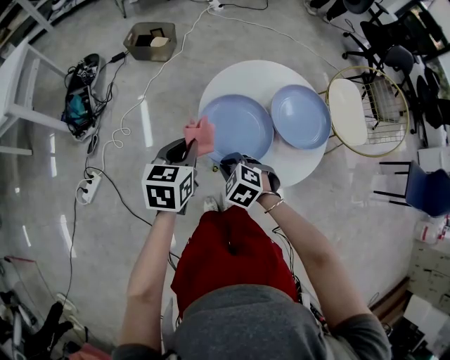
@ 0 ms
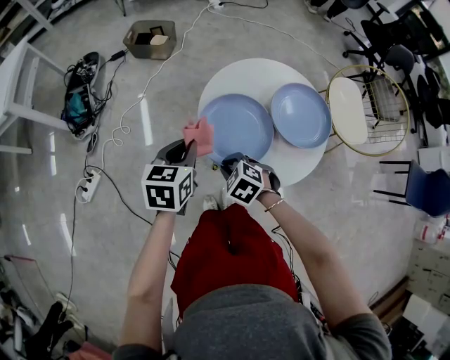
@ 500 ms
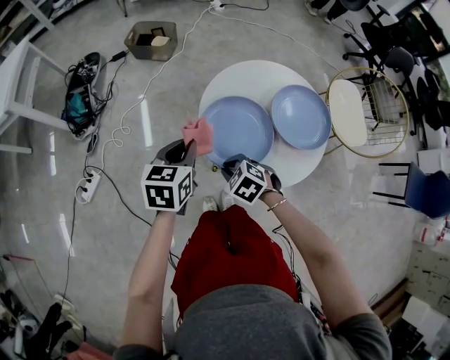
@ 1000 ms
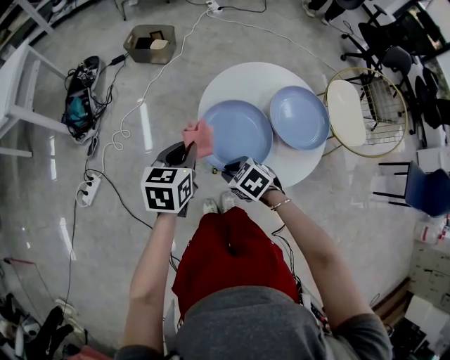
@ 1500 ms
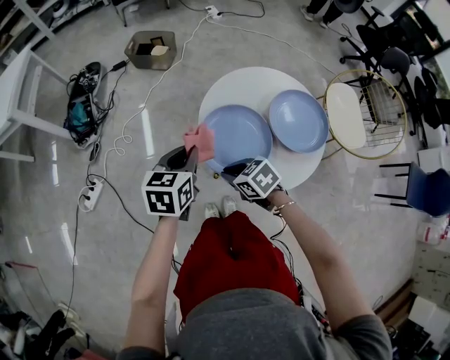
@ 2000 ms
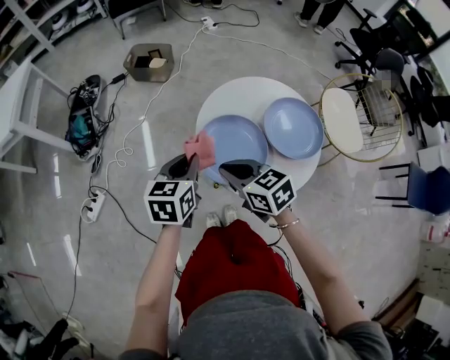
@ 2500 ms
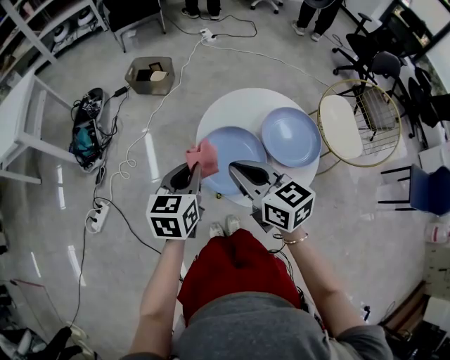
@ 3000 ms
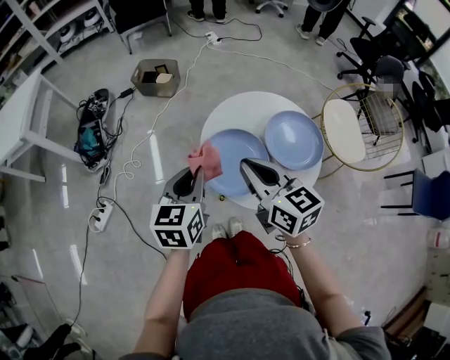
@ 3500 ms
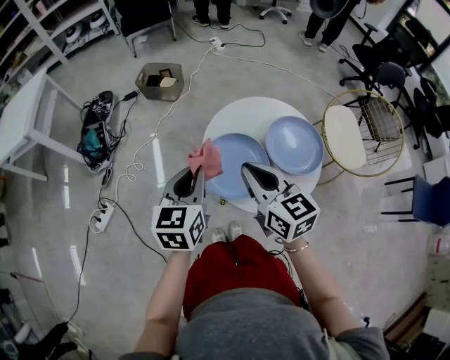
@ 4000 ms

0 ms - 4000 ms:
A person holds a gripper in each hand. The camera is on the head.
0 ms - 2000 ms: The right gripper turns by some 30 degrees.
2000 ms - 4000 ms: The right gripper shifts approximately 25 cm upward, and angles its fingers upward, by about 30 degrees. The left gripper heads upward, covering about 10 cm.

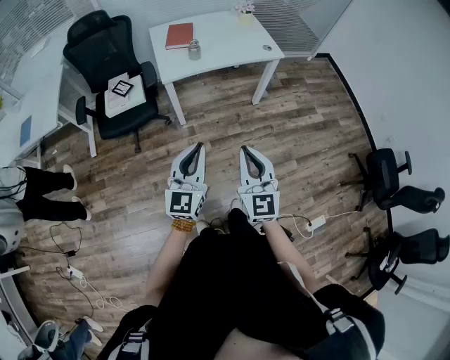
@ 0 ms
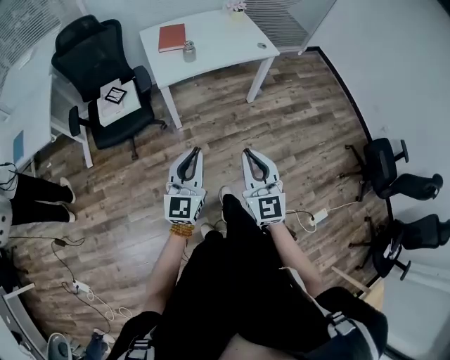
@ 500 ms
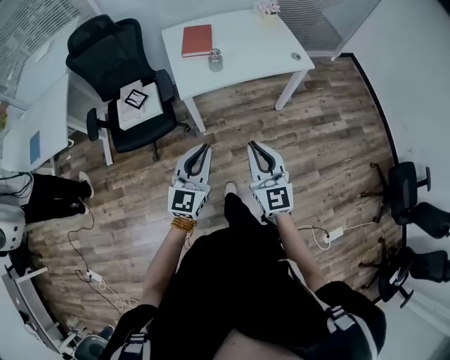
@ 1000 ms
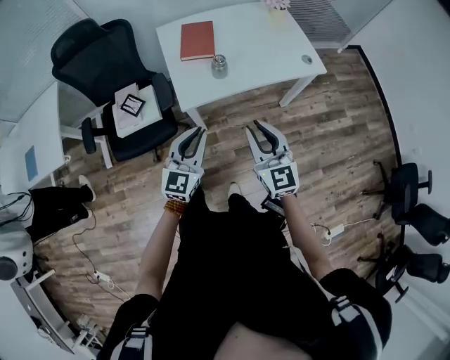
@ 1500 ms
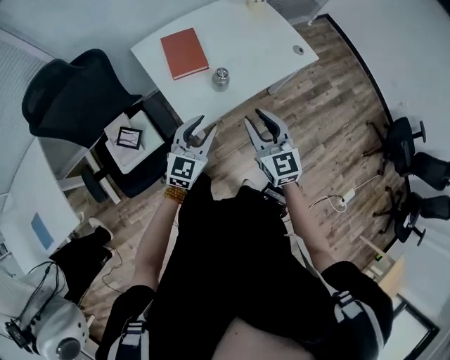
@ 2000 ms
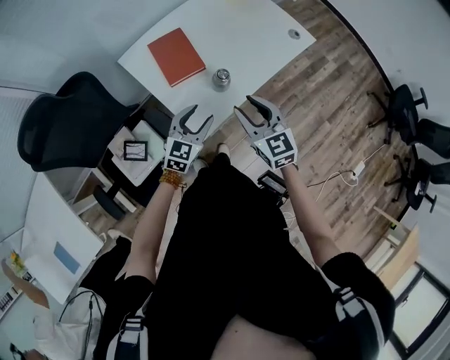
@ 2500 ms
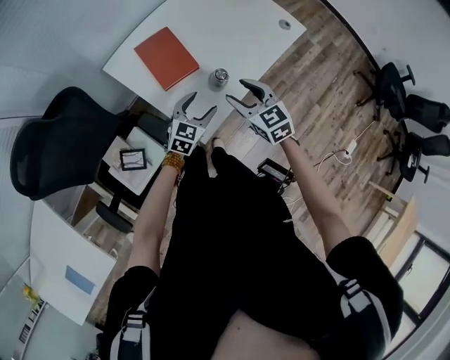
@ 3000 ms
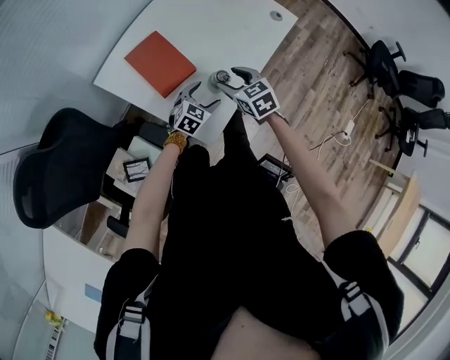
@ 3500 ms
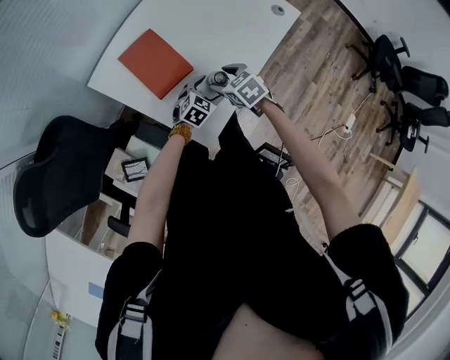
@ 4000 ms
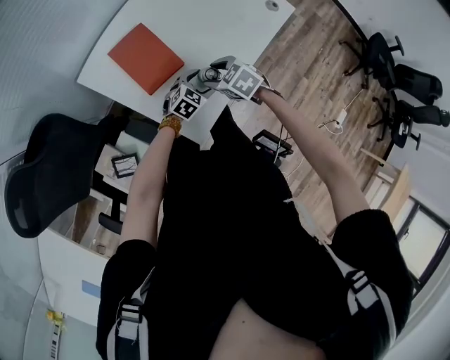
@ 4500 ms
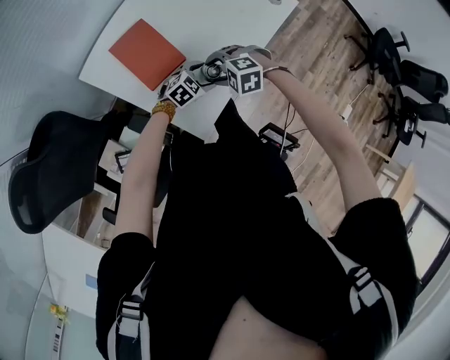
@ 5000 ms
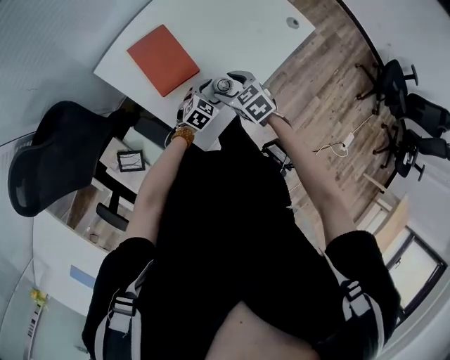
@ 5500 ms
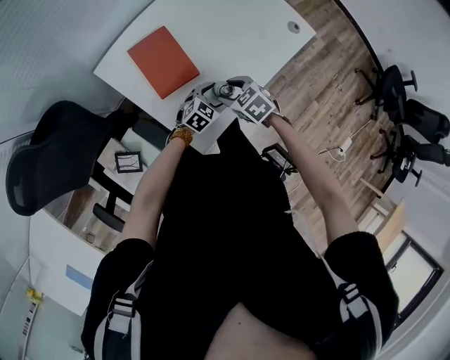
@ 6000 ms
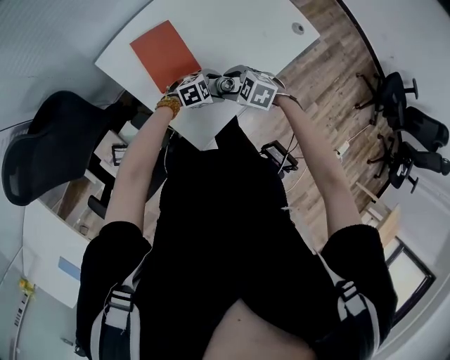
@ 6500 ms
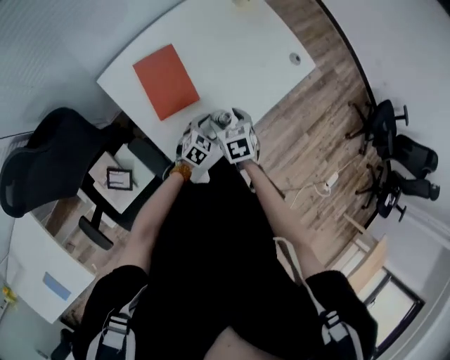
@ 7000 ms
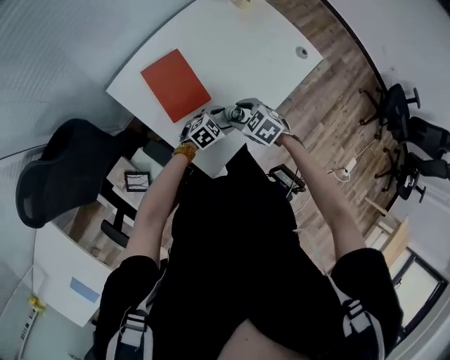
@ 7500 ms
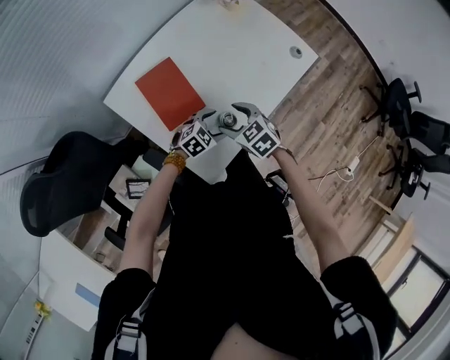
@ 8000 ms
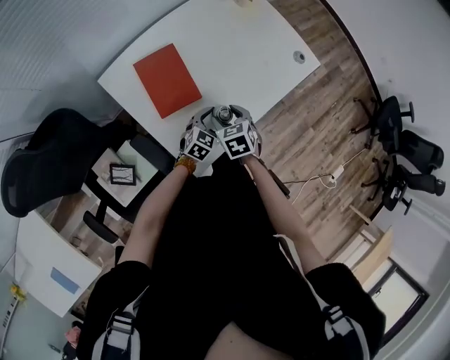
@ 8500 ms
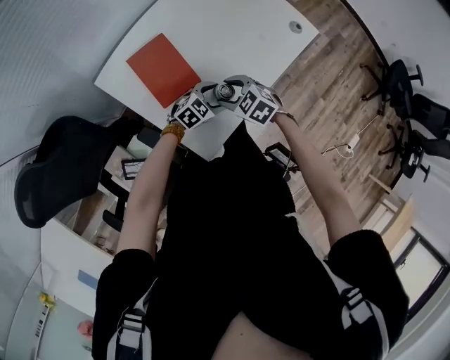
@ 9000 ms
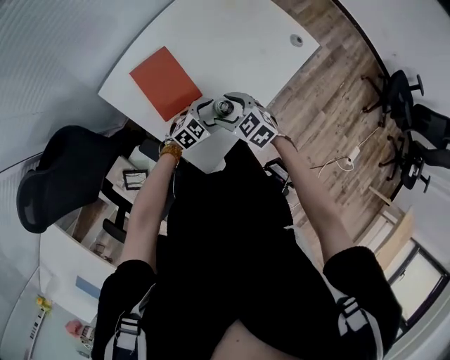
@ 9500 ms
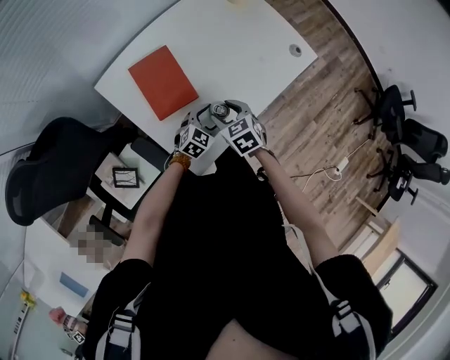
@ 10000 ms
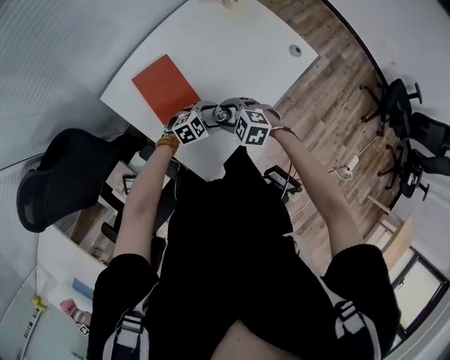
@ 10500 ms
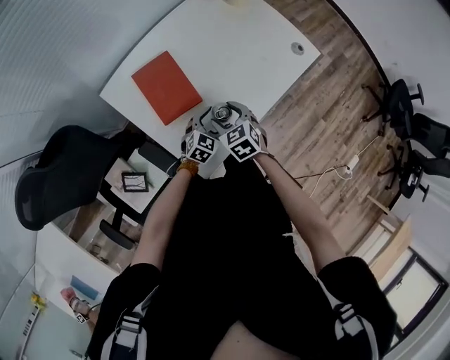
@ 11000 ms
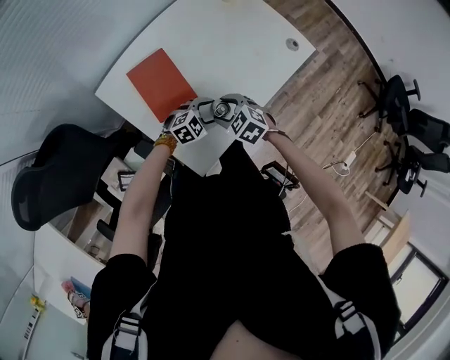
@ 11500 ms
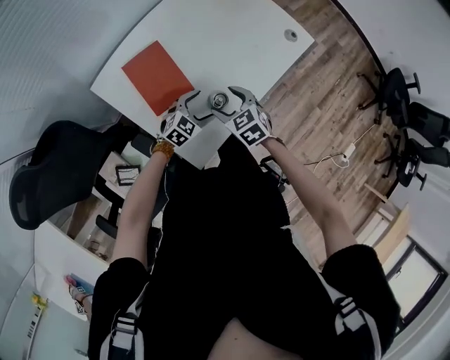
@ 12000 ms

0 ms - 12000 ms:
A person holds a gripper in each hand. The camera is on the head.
0 ms - 2000 ms: The two grippers travel together, forward and to the left, some 50 cm. The left gripper rotates about 30 degrees. Meanwhile the right gripper opens.
2000 ms - 4000 ms: The right gripper moves downward, forward and to the left, some 30 cm, angles its fingers downward, by about 40 degrees, and opens; the left gripper moves downward and forward, roughly 30 cm, swivels some 40 degrees, and opens.
8000 ms - 10000 ms: The left gripper swivels roughly 20 degrees.

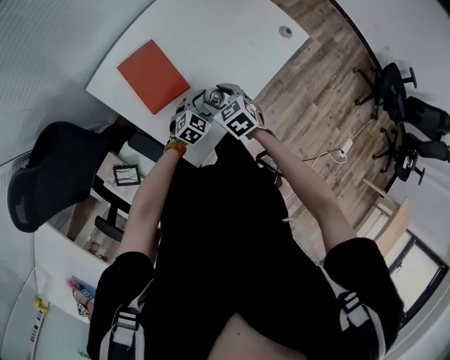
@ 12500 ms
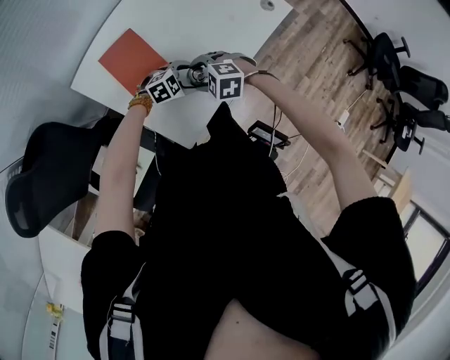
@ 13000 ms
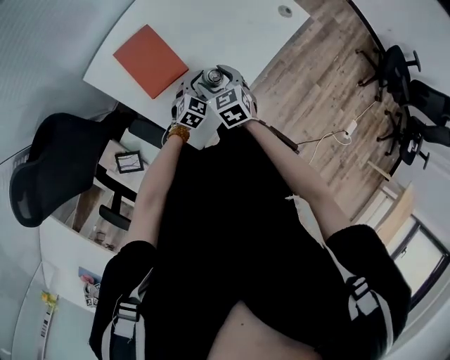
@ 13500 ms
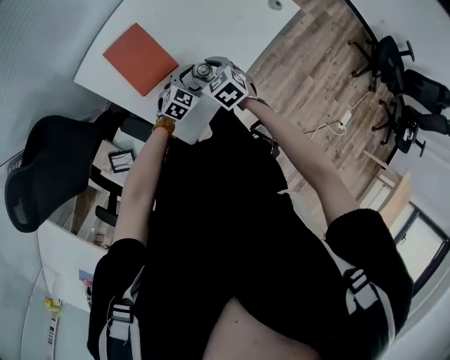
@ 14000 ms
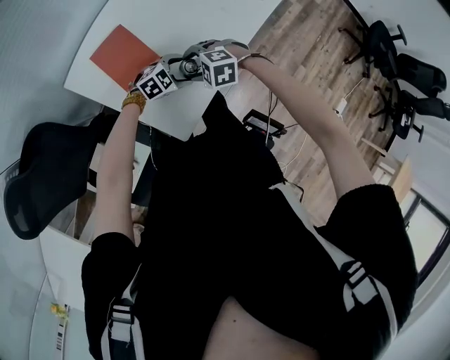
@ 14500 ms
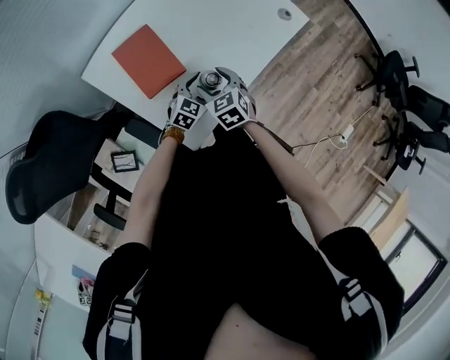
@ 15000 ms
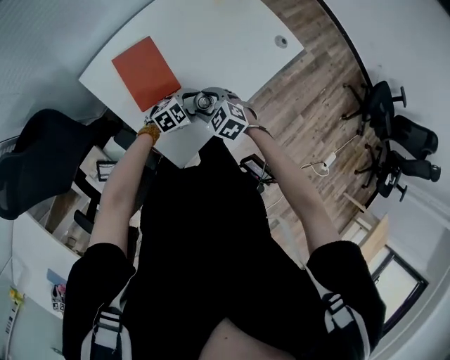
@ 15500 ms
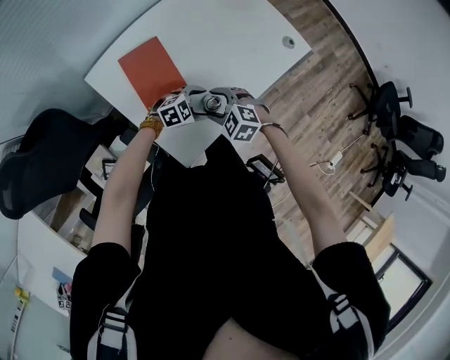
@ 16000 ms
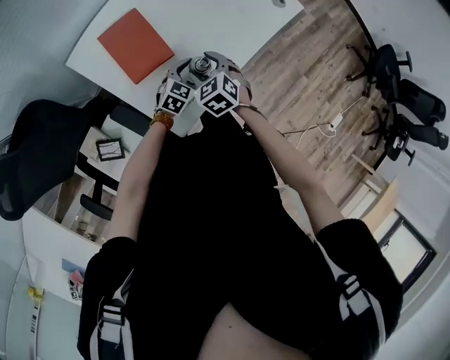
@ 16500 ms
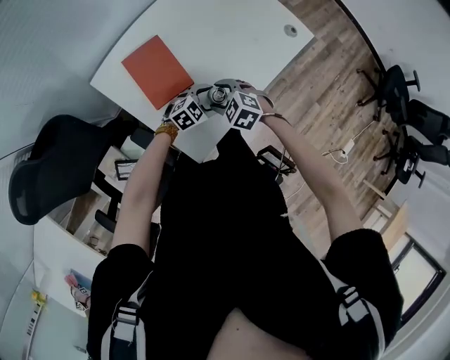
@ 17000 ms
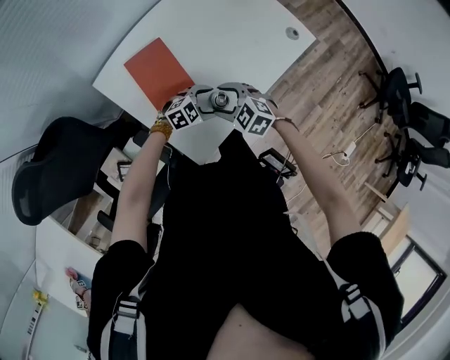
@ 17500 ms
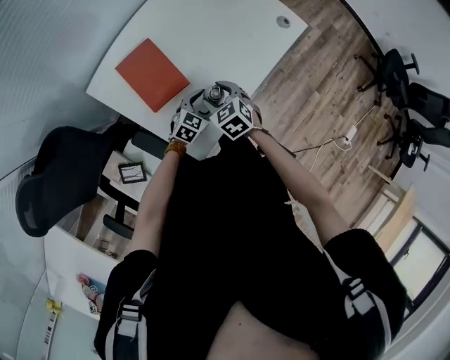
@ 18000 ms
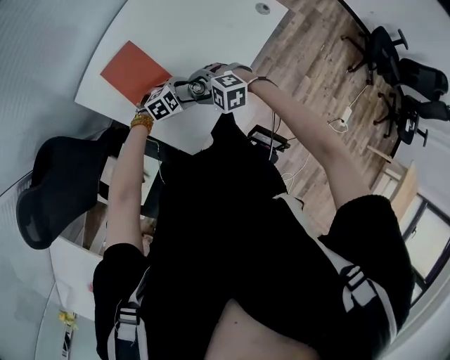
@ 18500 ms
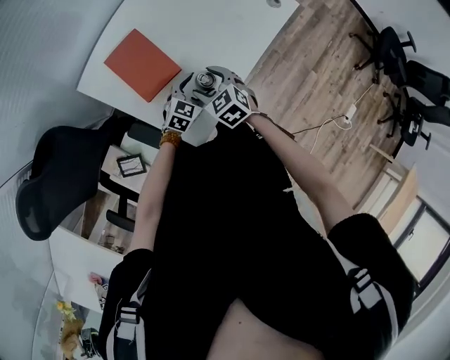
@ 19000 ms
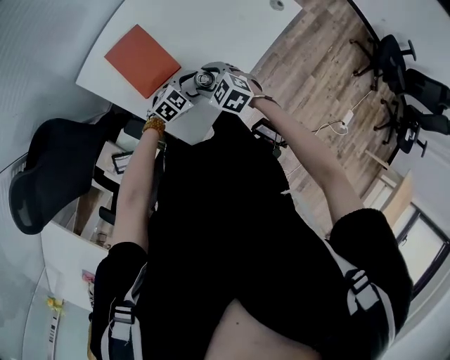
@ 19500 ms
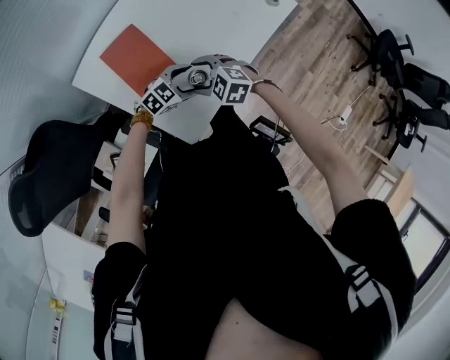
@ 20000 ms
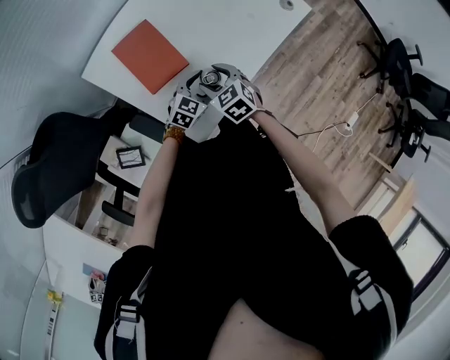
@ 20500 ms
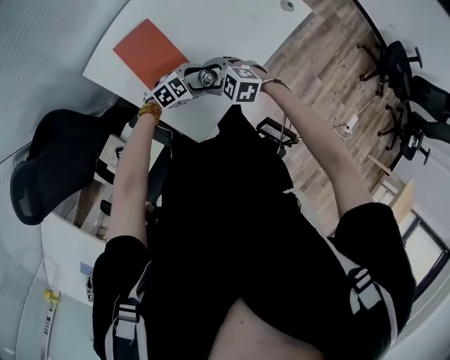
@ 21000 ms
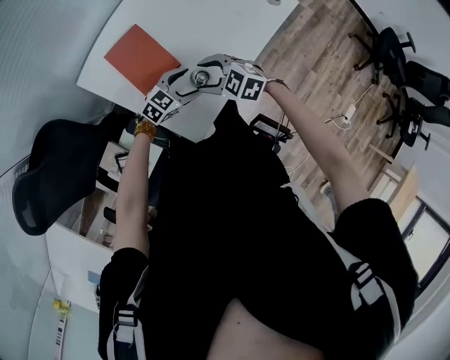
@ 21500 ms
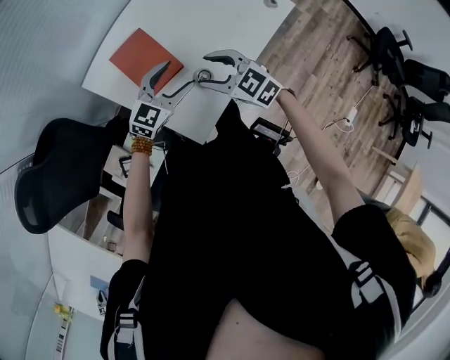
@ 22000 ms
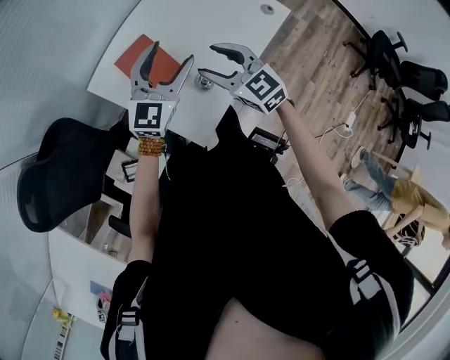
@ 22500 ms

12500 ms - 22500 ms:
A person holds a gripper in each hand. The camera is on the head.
12500 ms - 14500 ms: The right gripper rolls counterclockwise, seen from behind, by about 40 degrees. The left gripper turns by some 30 degrees.
14500 ms - 16500 ms: The left gripper rotates some 40 degrees, while the right gripper turns by approximately 50 degrees.
16500 ms - 18500 ms: The left gripper swivels some 40 degrees, while the right gripper swivels roughly 50 degrees.
18500 ms - 20500 ms: The left gripper changes its angle by about 40 degrees; the right gripper twists some 40 degrees clockwise, seen from behind.
20500 ms - 22500 ms: The left gripper moves upward, roughly 30 cm, and changes its angle by approximately 40 degrees; the right gripper heads upward, covering about 20 cm, and turns by about 30 degrees.

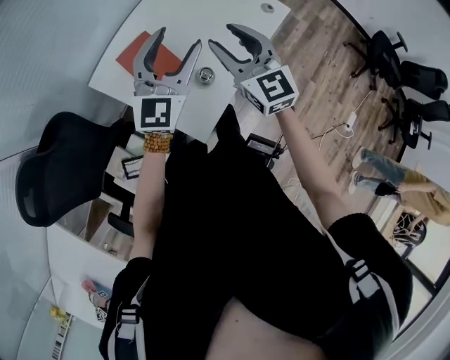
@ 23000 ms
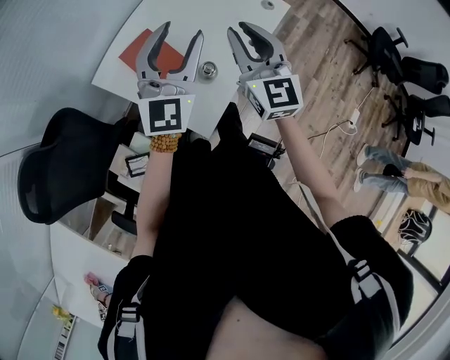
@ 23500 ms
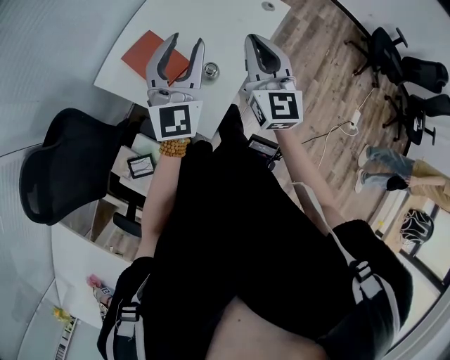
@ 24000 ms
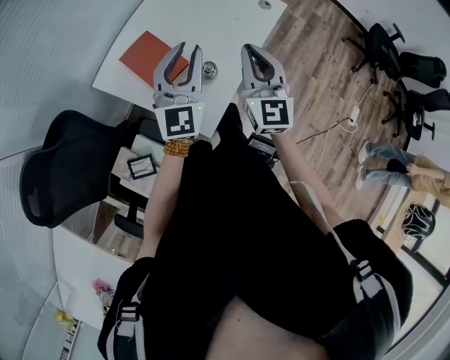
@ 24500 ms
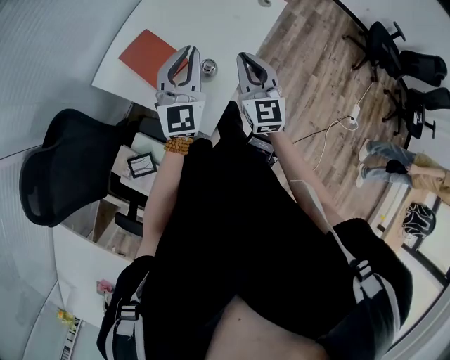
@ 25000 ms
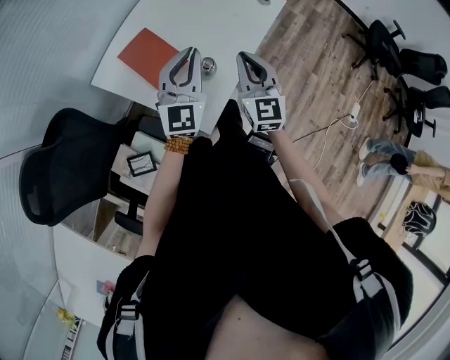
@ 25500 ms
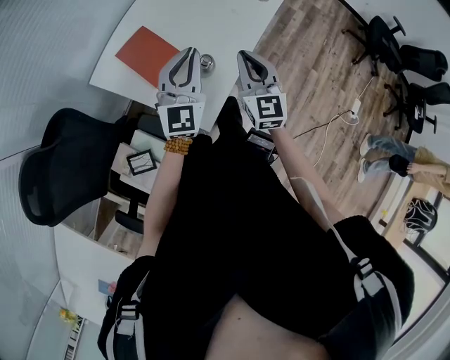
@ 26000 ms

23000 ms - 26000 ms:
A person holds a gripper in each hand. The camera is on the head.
23000 ms - 24500 ms: The right gripper travels backward by approximately 5 cm, rotates roughly 20 degrees, and closes. Meanwhile the left gripper closes.
24500 ms - 26000 ms: The left gripper shifts by some 5 cm. The right gripper shifts approximately 5 cm downward.
